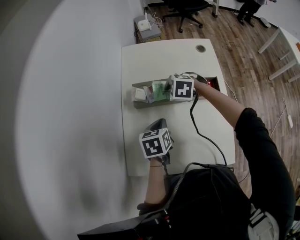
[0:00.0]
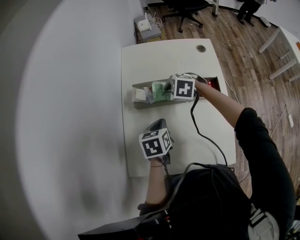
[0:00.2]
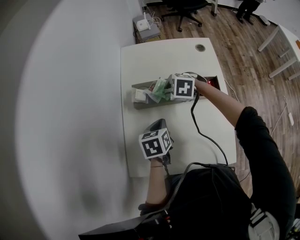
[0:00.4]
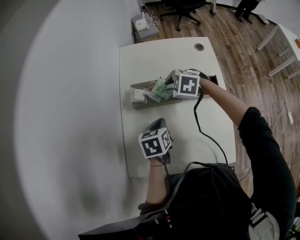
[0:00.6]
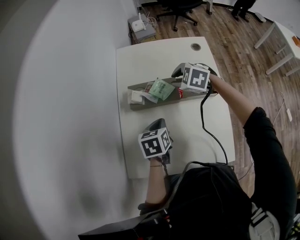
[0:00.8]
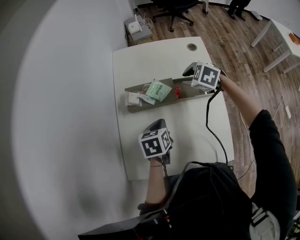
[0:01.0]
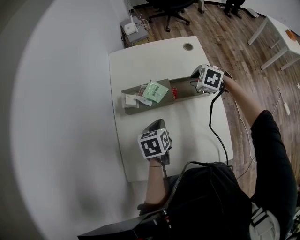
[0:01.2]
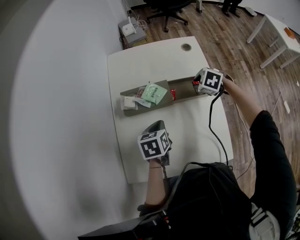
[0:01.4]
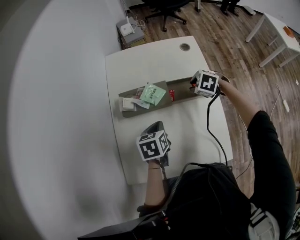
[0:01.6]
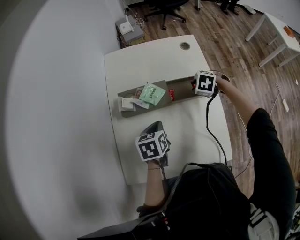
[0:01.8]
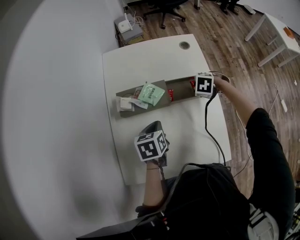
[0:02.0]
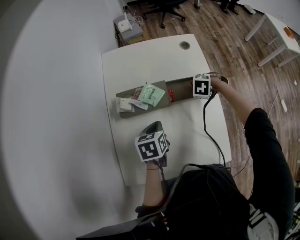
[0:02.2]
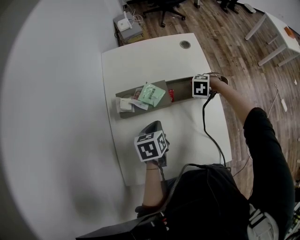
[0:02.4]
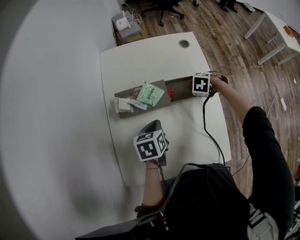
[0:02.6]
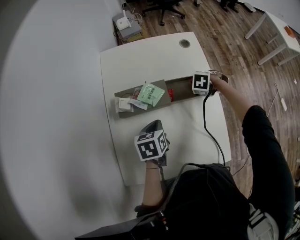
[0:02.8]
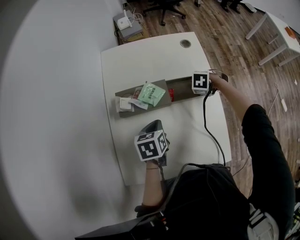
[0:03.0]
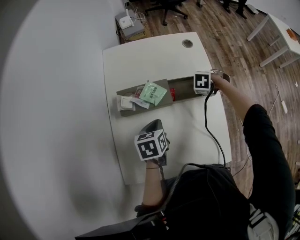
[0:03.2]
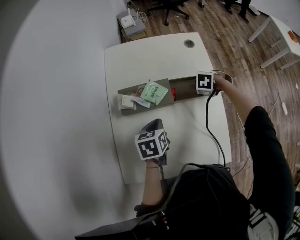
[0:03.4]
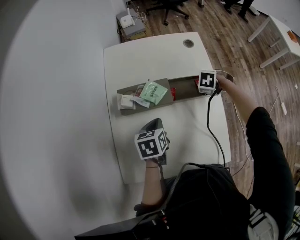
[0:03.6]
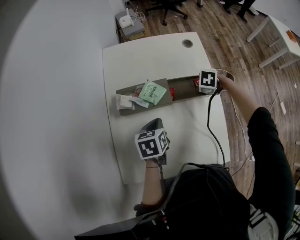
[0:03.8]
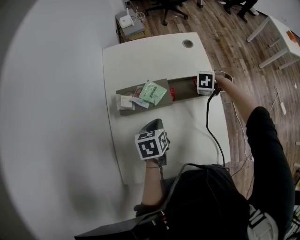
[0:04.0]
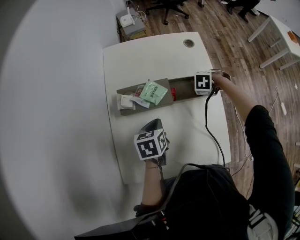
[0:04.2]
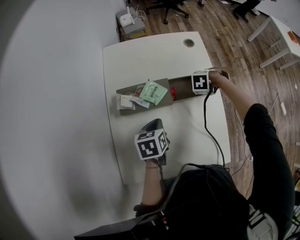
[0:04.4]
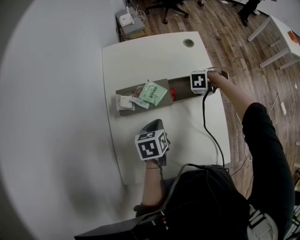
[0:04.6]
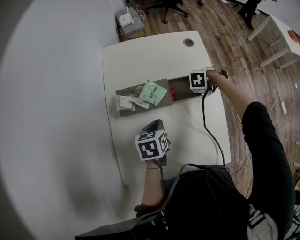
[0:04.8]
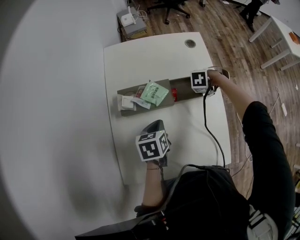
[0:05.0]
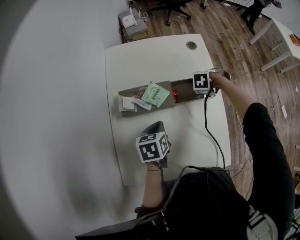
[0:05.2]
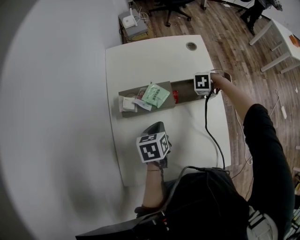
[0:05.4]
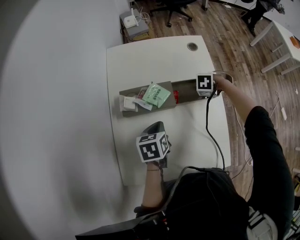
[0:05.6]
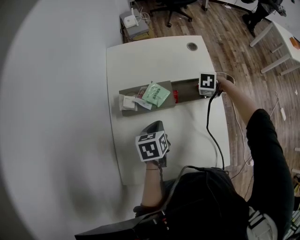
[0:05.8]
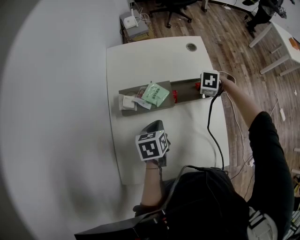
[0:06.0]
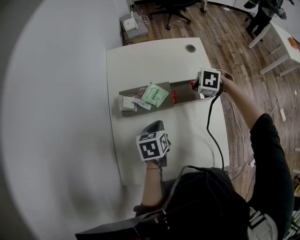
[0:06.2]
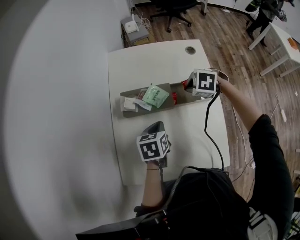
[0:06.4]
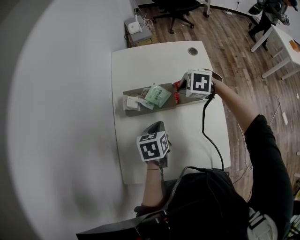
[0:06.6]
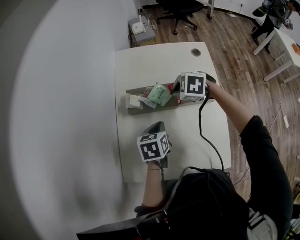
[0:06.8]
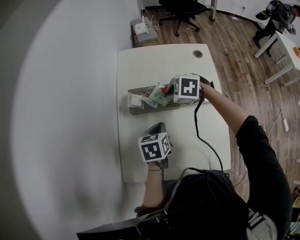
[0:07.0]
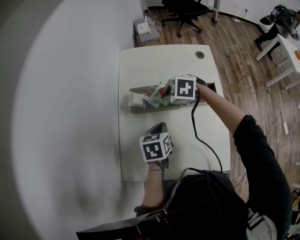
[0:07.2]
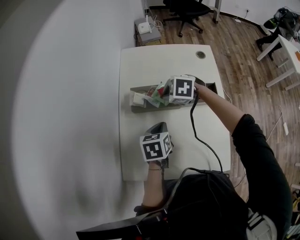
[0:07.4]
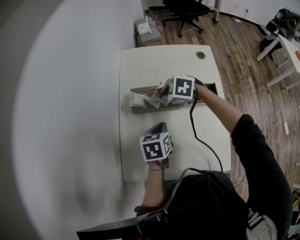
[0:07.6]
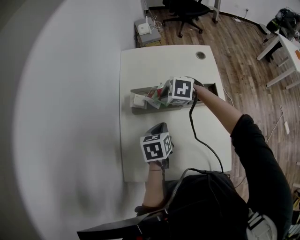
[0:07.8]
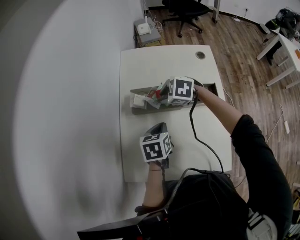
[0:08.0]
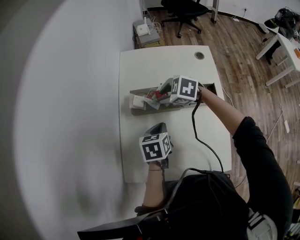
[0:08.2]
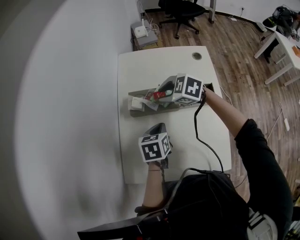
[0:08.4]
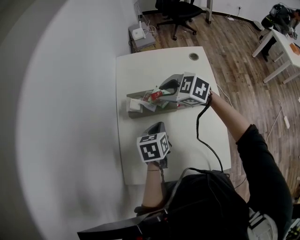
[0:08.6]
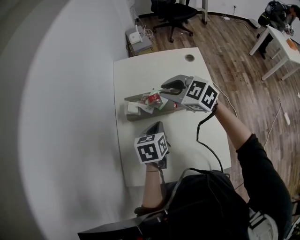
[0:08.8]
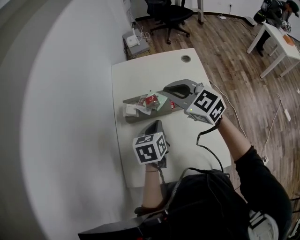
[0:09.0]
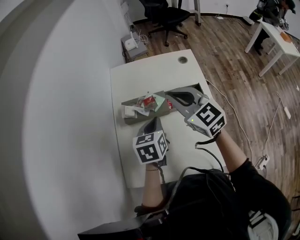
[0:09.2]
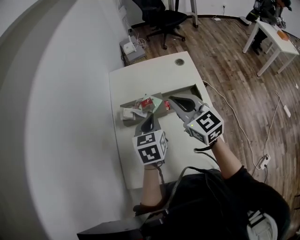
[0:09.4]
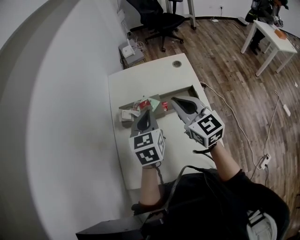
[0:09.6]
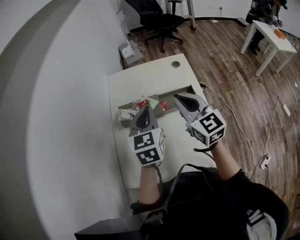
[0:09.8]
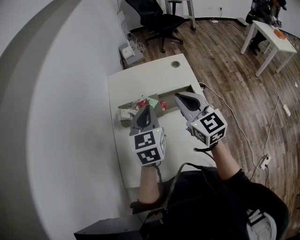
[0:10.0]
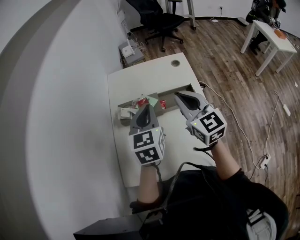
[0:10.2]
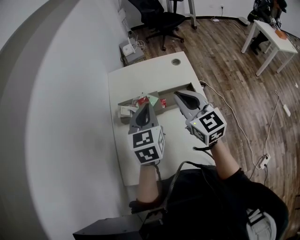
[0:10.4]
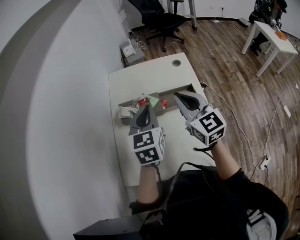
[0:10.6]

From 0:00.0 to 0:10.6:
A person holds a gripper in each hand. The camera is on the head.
From 0:00.0 to 0:01.6: The right gripper heads to the right, covering approximately 20 cm, and changes its angle by approximately 20 degrees.
From 0:01.6 to 0:03.0: The right gripper is displaced downward by some 5 cm, and turns by about 20 degrees.
From 0:03.0 to 0:04.6: The right gripper opens its fingers.
From 0:04.6 to 0:06.0: The right gripper closes.
From 0:06.0 to 0:07.6: The right gripper moves roughly 25 cm, and turns by roughly 30 degrees.
From 0:07.6 to 0:09.0: The left gripper is displaced upward by about 5 cm. The right gripper is displaced upward by roughly 20 cm, tips its fingers upward by approximately 40 degrees, and opens and closes again.
From 0:09.0 to 0:10.6: The left gripper is displaced upward by about 10 cm, and changes its angle by roughly 30 degrees, while the right gripper travels backward and to the right by some 10 cm, and swivels roughly 30 degrees.

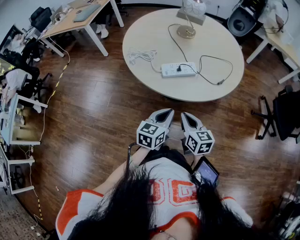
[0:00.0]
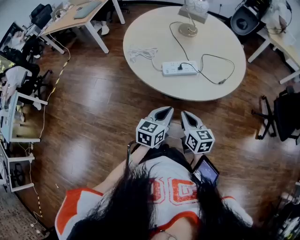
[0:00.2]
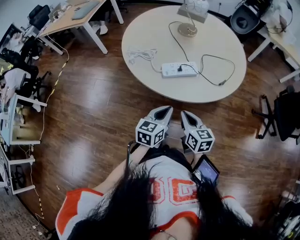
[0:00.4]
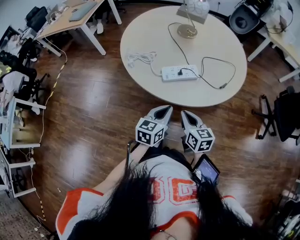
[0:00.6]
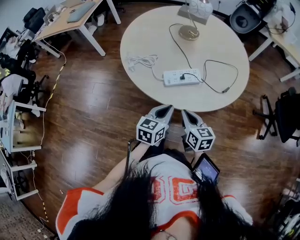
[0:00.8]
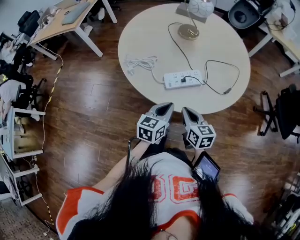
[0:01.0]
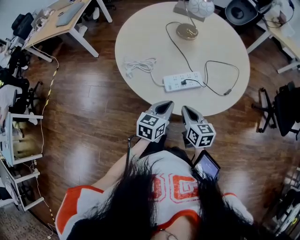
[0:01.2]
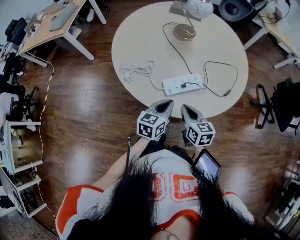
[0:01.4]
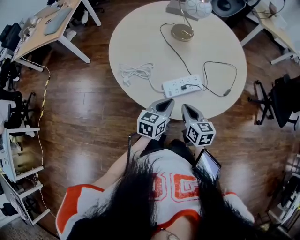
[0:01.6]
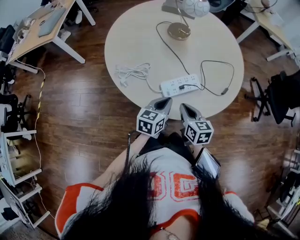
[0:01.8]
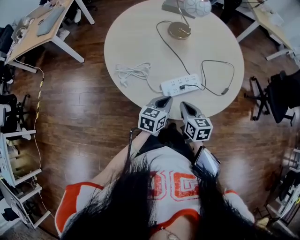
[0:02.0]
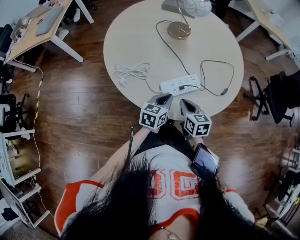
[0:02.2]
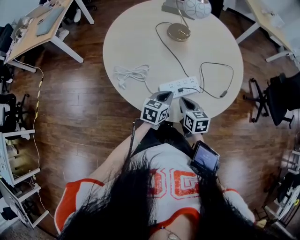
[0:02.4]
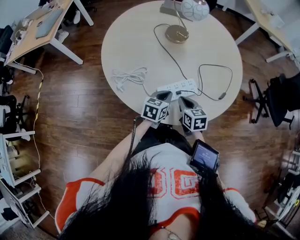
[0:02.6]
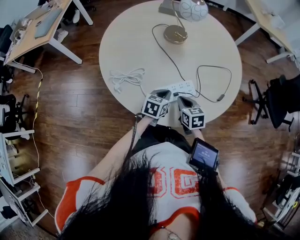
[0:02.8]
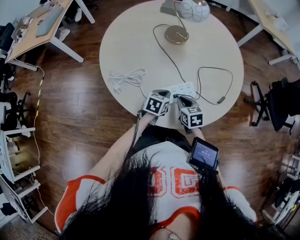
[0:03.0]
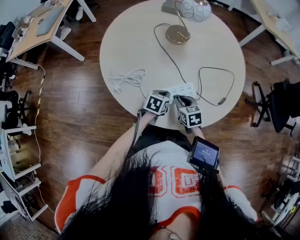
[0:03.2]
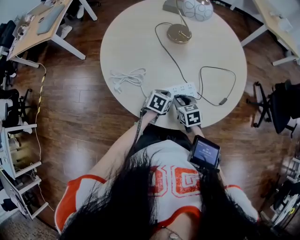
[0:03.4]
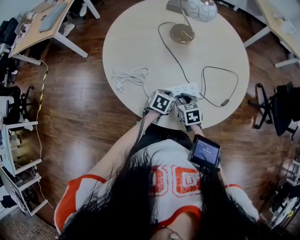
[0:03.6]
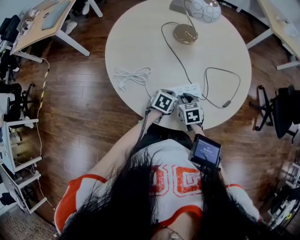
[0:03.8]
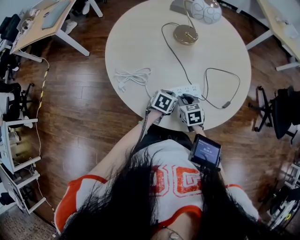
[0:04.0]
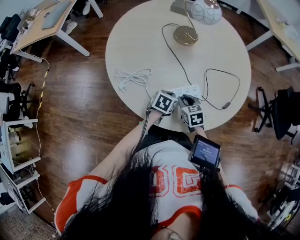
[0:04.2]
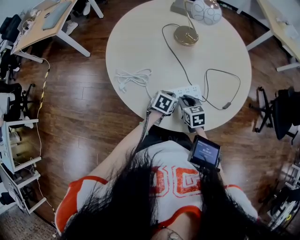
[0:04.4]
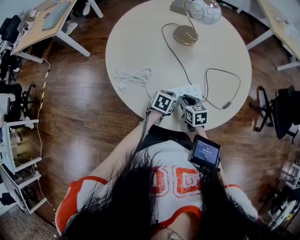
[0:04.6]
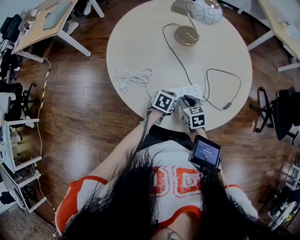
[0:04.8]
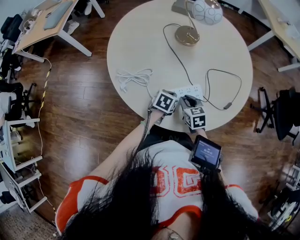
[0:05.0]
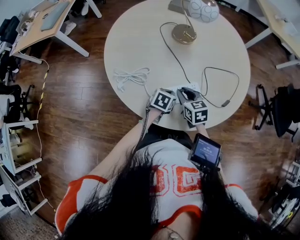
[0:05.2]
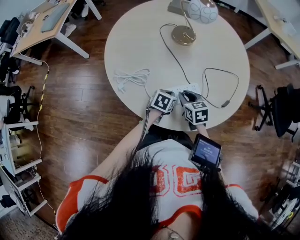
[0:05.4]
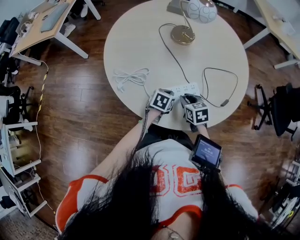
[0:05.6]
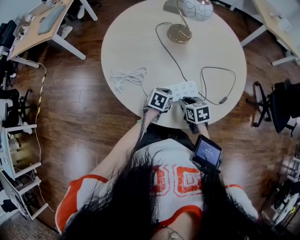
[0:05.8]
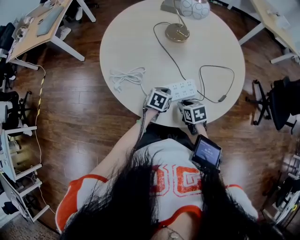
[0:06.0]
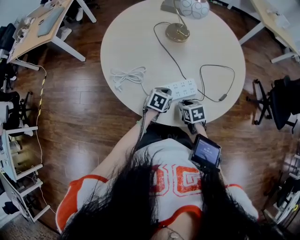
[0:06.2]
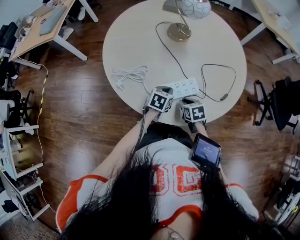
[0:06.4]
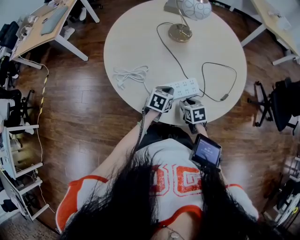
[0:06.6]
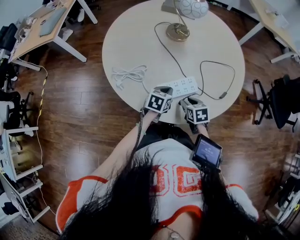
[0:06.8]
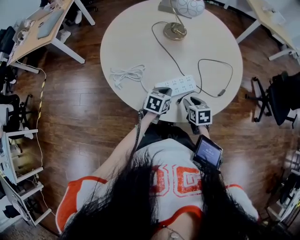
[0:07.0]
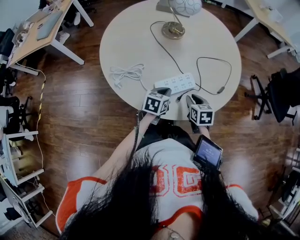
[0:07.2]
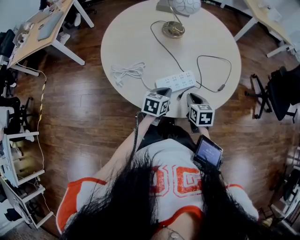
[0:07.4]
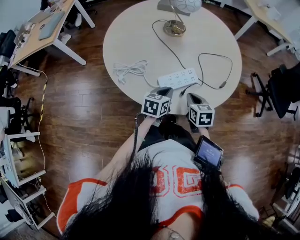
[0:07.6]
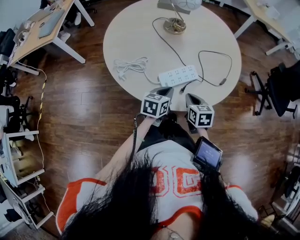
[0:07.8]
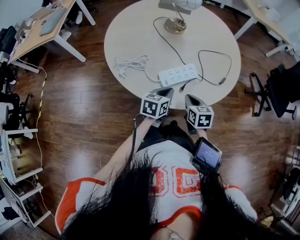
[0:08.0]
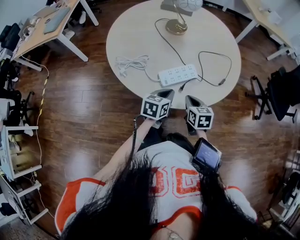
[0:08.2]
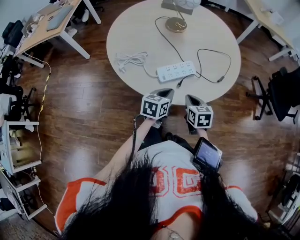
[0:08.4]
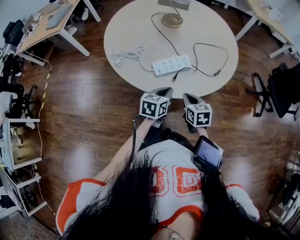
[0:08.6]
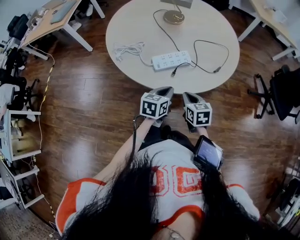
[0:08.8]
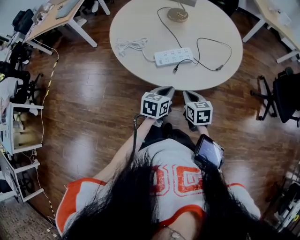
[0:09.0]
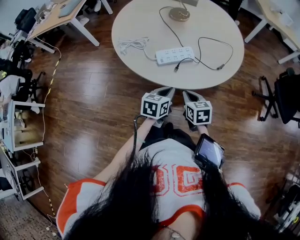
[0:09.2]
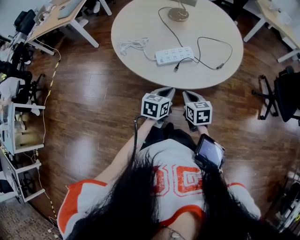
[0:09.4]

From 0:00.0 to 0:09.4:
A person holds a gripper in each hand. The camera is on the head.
From 0:00.0 to 0:01.6: Both grippers move forward, roughly 15 cm.
From 0:01.6 to 0:03.2: The right gripper moves forward and downward, about 15 cm, and swivels approximately 20 degrees; the left gripper goes roughly 15 cm downward and forward, and turns by some 20 degrees.
From 0:03.2 to 0:04.8: The grippers stay close to where they were, moving slightly.
From 0:04.8 to 0:06.2: The right gripper shifts by some 5 cm.
From 0:06.2 to 0:07.8: The left gripper is displaced upward and backward by roughly 10 cm. The right gripper goes some 10 cm upward, rotates some 20 degrees, and closes up.
From 0:07.8 to 0:09.4: The left gripper travels backward and to the right by roughly 10 cm, while the right gripper is displaced backward by about 10 cm.

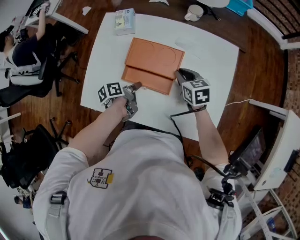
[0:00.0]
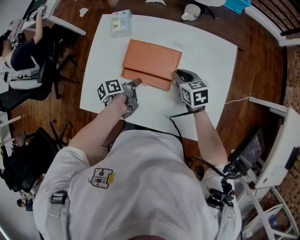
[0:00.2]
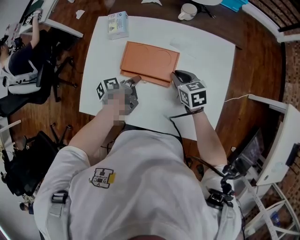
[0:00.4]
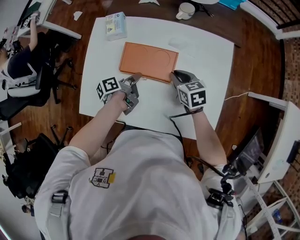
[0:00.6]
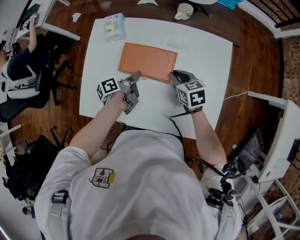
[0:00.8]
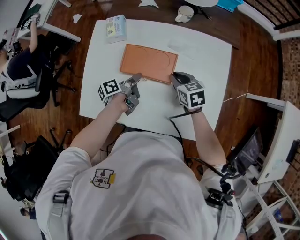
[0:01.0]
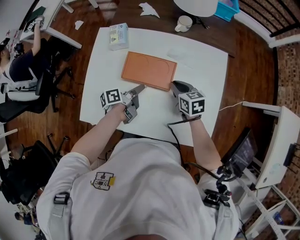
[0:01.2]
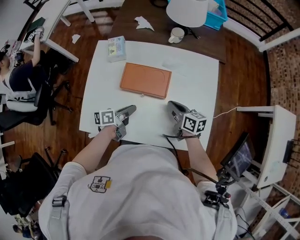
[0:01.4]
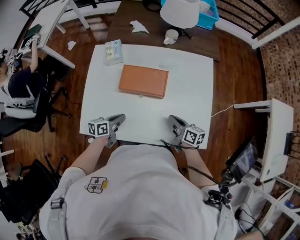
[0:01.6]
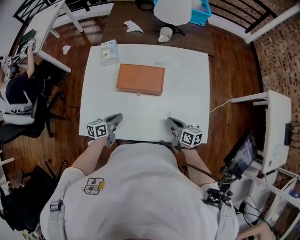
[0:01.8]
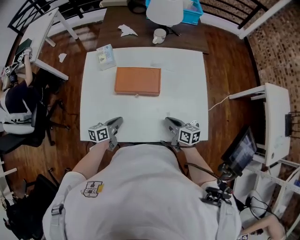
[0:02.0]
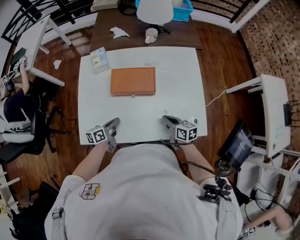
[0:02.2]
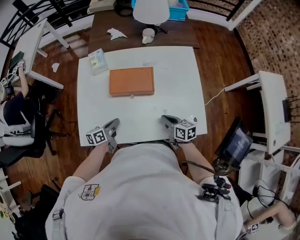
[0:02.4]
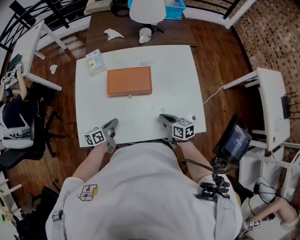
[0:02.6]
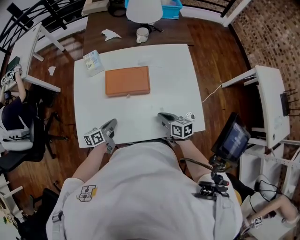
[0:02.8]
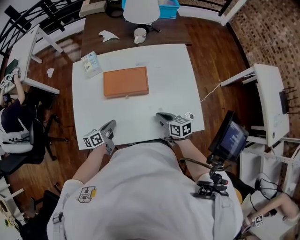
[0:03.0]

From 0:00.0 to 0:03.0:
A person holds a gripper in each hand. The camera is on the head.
From 0:00.0 to 0:01.6: The right gripper shifts by some 15 cm, and swivels approximately 40 degrees.

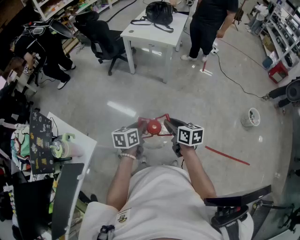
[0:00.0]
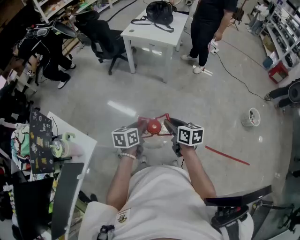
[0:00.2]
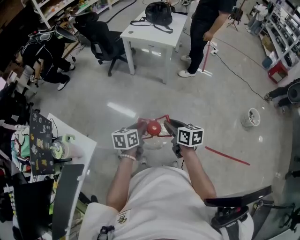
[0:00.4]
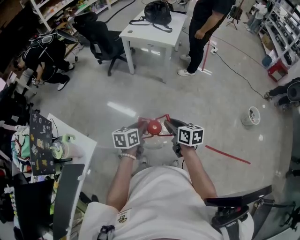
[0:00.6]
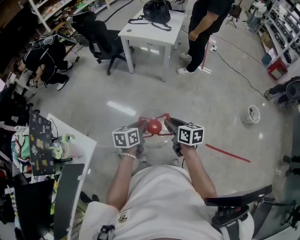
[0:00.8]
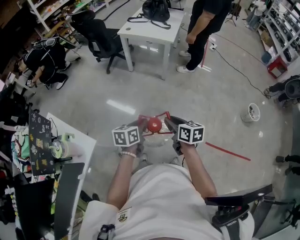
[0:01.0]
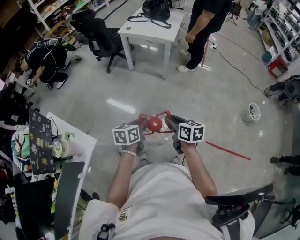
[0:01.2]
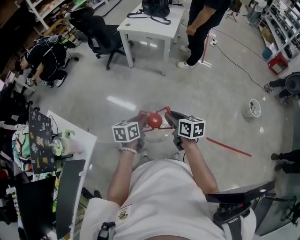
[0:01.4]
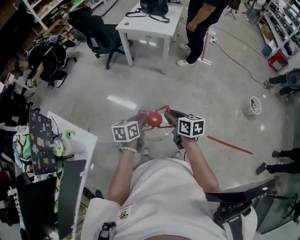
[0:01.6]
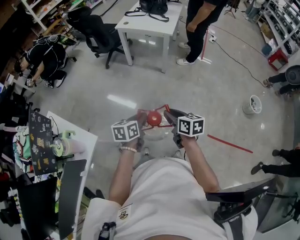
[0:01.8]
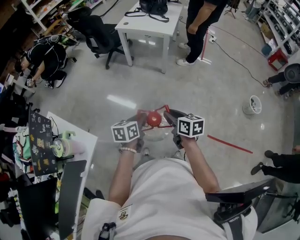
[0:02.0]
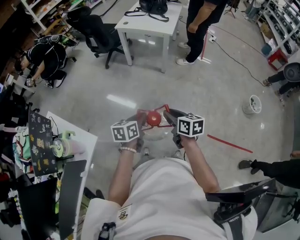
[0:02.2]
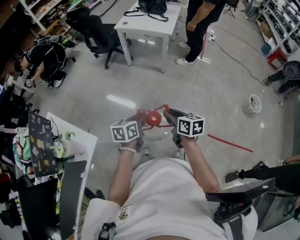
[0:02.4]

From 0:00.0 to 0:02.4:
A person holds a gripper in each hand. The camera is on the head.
From 0:00.0 to 0:02.4: Neither gripper changes place.
